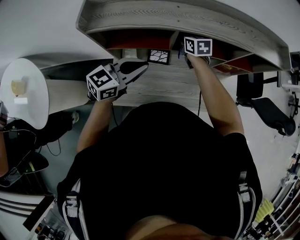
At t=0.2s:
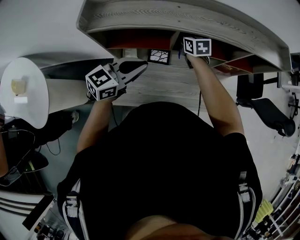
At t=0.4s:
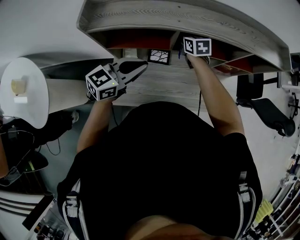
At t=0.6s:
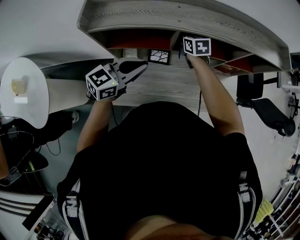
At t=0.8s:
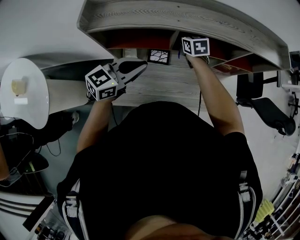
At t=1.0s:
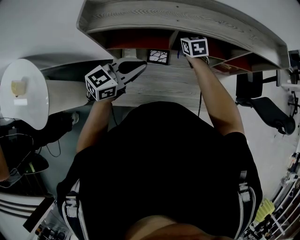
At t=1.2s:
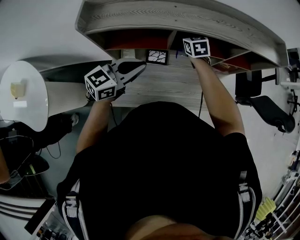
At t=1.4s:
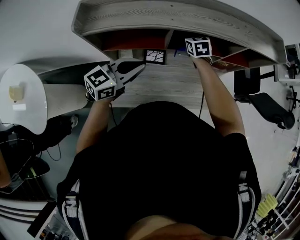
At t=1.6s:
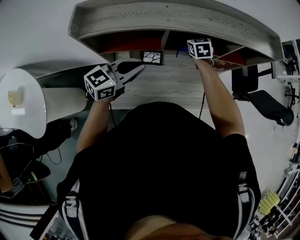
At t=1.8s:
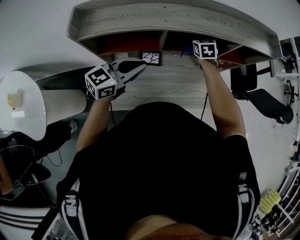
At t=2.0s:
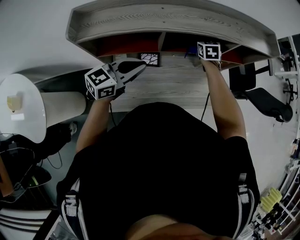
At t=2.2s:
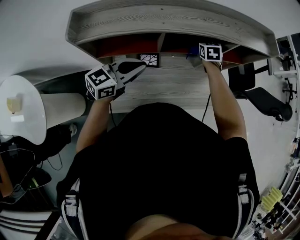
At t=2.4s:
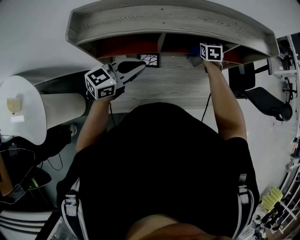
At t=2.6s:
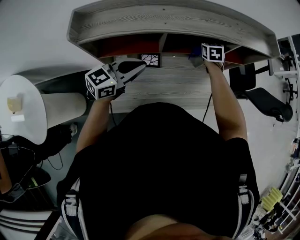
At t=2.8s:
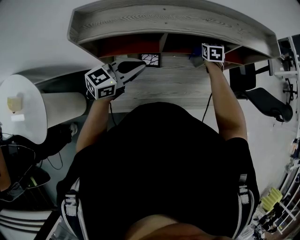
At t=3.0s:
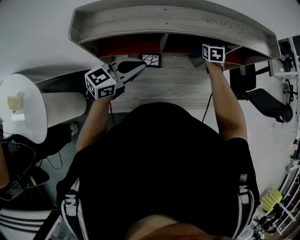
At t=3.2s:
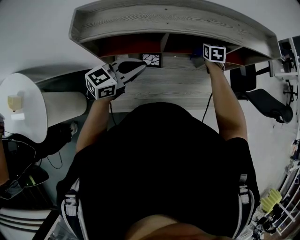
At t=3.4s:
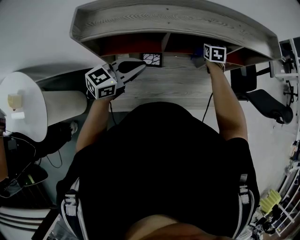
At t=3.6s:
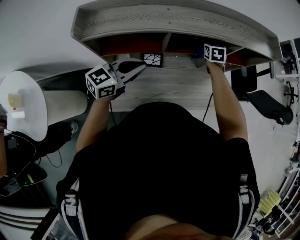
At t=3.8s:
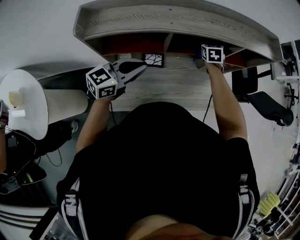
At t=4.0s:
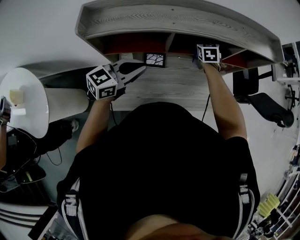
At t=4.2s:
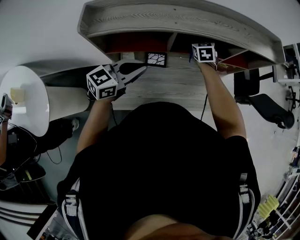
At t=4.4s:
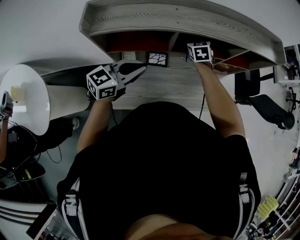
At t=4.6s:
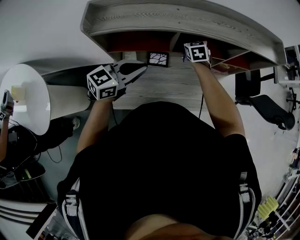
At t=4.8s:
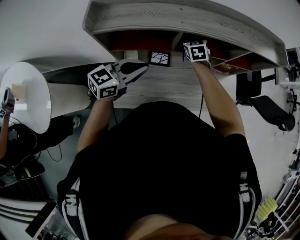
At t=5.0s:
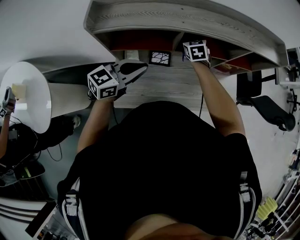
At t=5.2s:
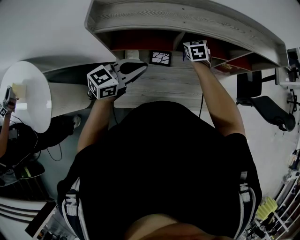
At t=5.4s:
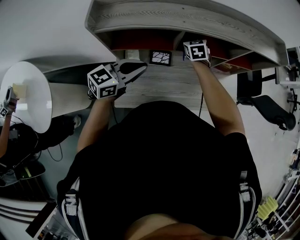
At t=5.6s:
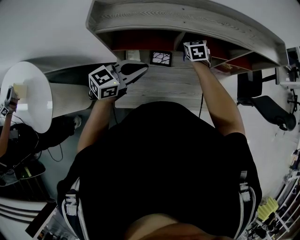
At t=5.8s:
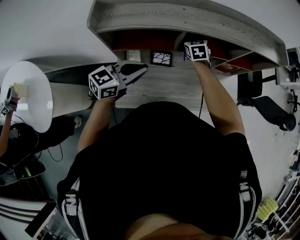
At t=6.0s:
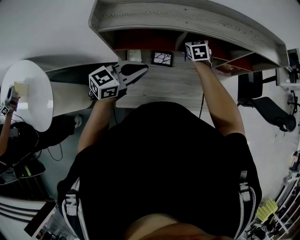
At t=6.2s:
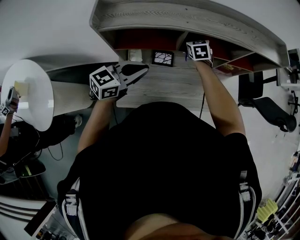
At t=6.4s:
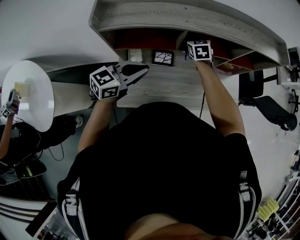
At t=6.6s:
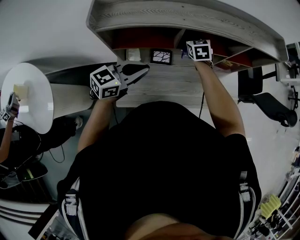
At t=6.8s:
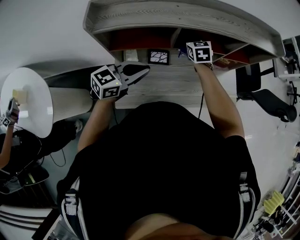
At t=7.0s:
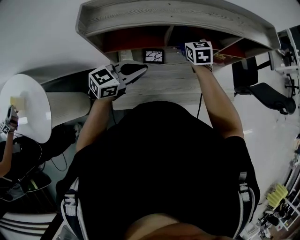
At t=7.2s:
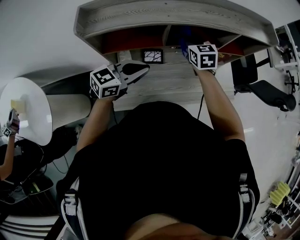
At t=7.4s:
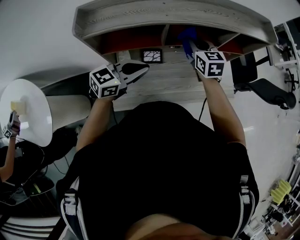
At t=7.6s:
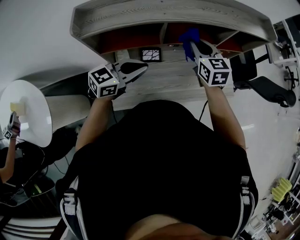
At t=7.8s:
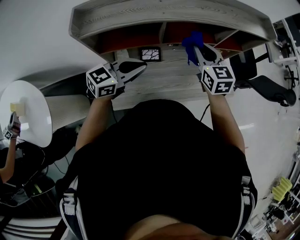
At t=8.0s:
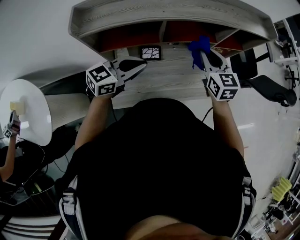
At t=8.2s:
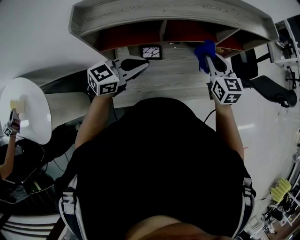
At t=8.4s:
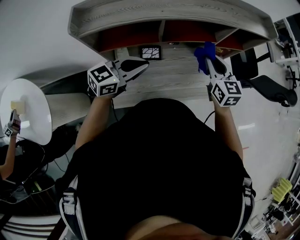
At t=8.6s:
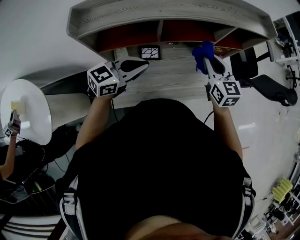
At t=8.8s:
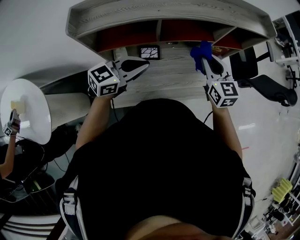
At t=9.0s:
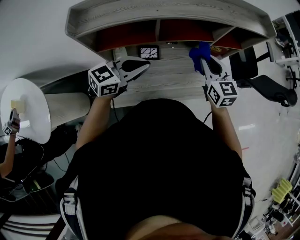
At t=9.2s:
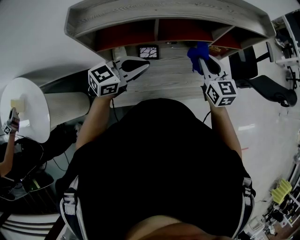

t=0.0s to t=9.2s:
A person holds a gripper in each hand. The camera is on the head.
t=0.0s to t=1.6s: The right gripper goes roughly 10 cm to the right, and changes its angle by about 20 degrees.
t=1.6s to t=3.0s: The right gripper is displaced to the right by some 10 cm.
t=3.0s to t=4.6s: The right gripper is displaced to the left and backward by approximately 15 cm.
t=4.6s to t=6.2s: The grippers move only a little.
t=6.2s to t=7.6s: The right gripper moves upward, backward and to the right, approximately 20 cm, and changes its angle by approximately 20 degrees.
t=7.6s to t=9.2s: The right gripper travels to the right by approximately 10 cm.

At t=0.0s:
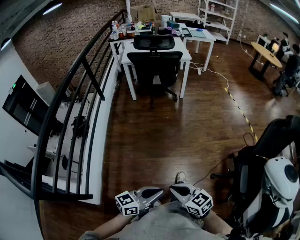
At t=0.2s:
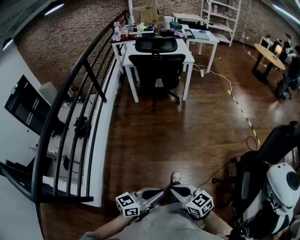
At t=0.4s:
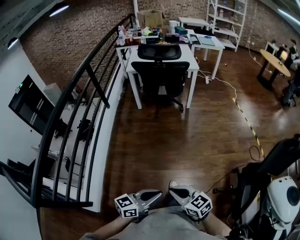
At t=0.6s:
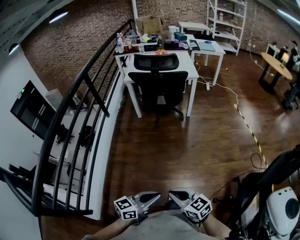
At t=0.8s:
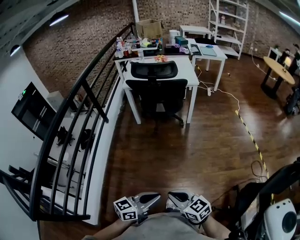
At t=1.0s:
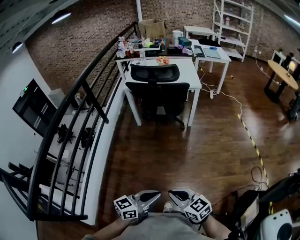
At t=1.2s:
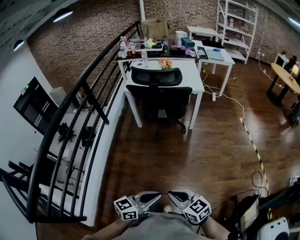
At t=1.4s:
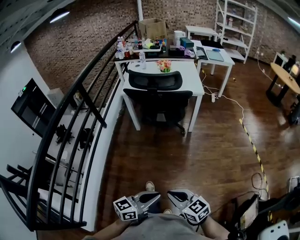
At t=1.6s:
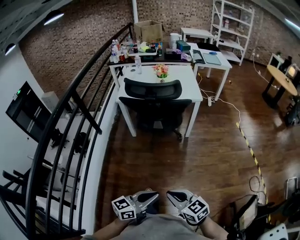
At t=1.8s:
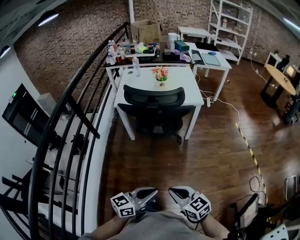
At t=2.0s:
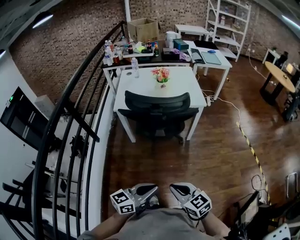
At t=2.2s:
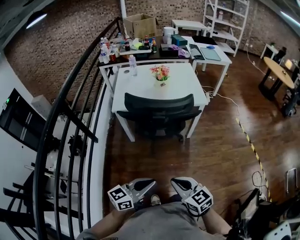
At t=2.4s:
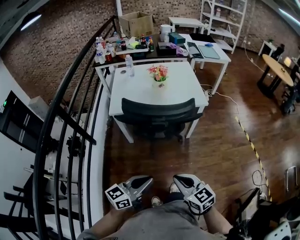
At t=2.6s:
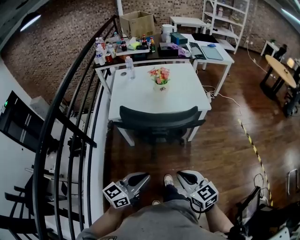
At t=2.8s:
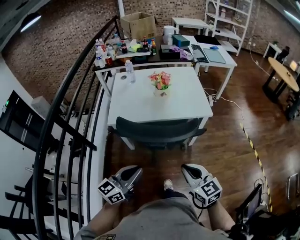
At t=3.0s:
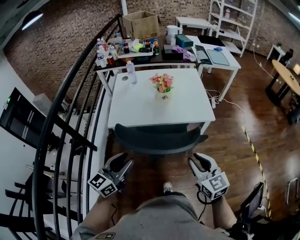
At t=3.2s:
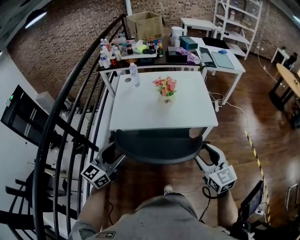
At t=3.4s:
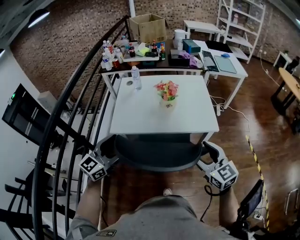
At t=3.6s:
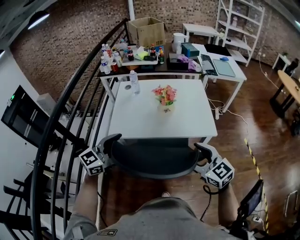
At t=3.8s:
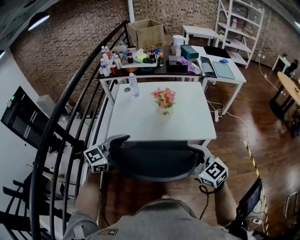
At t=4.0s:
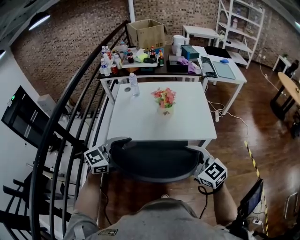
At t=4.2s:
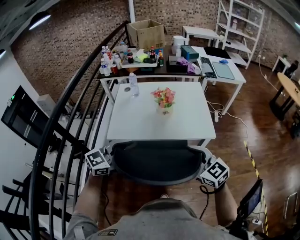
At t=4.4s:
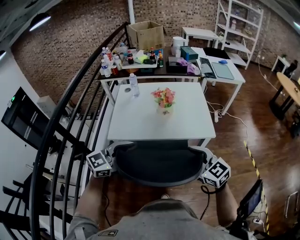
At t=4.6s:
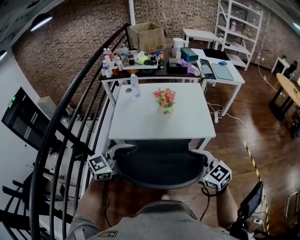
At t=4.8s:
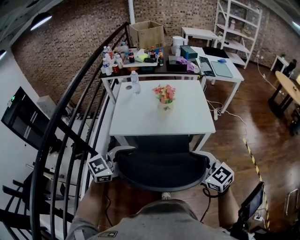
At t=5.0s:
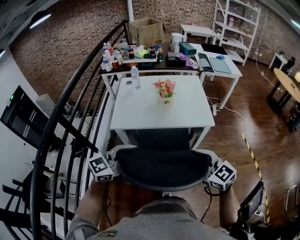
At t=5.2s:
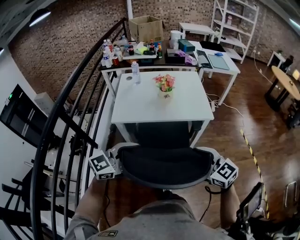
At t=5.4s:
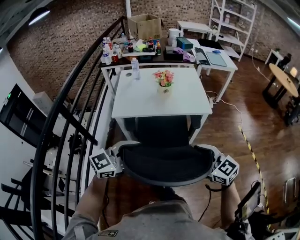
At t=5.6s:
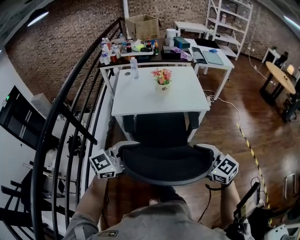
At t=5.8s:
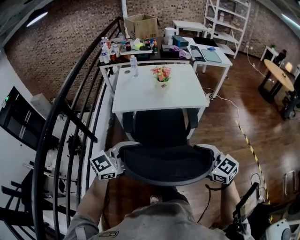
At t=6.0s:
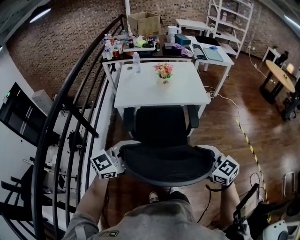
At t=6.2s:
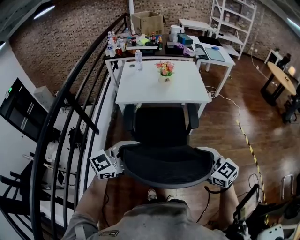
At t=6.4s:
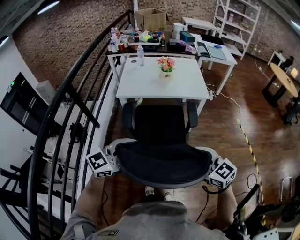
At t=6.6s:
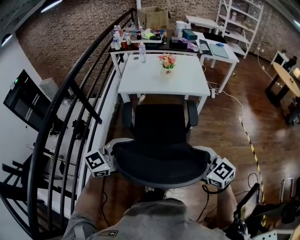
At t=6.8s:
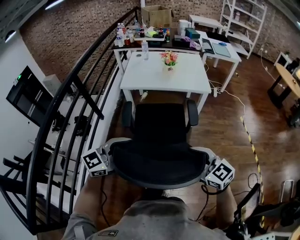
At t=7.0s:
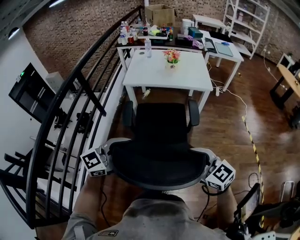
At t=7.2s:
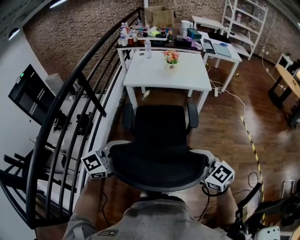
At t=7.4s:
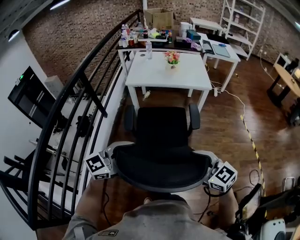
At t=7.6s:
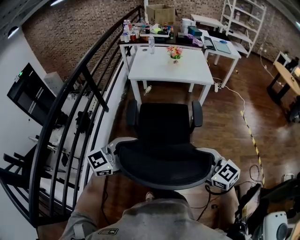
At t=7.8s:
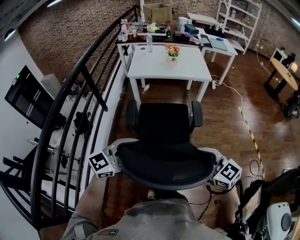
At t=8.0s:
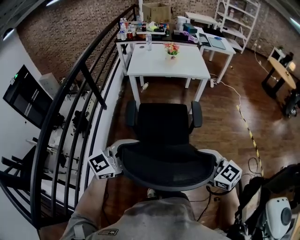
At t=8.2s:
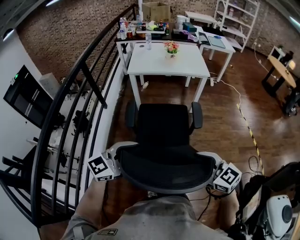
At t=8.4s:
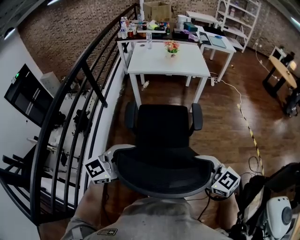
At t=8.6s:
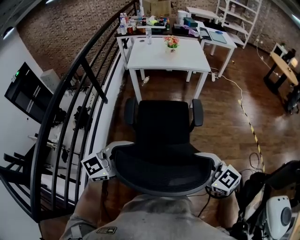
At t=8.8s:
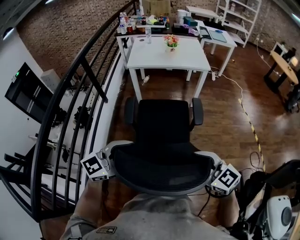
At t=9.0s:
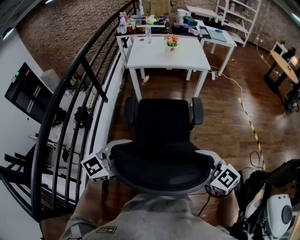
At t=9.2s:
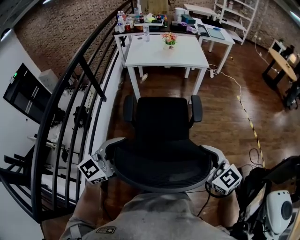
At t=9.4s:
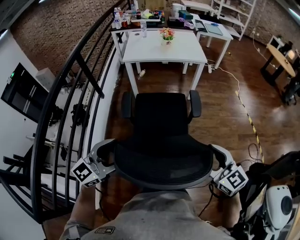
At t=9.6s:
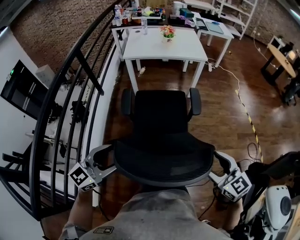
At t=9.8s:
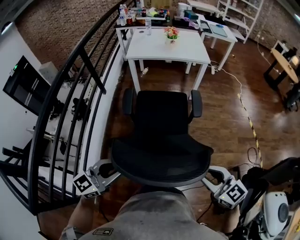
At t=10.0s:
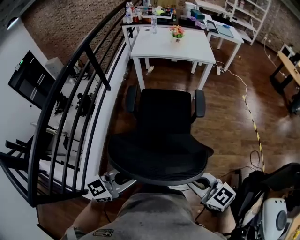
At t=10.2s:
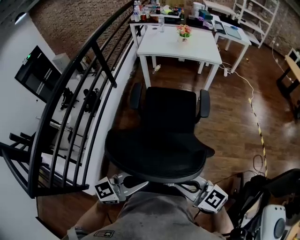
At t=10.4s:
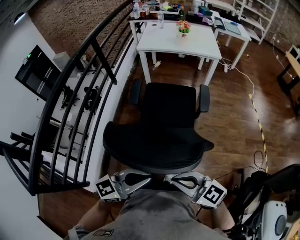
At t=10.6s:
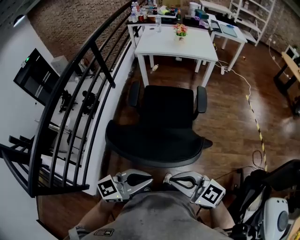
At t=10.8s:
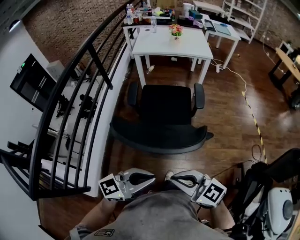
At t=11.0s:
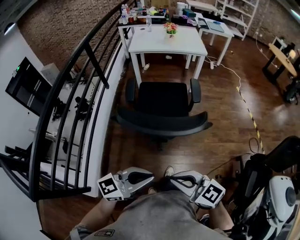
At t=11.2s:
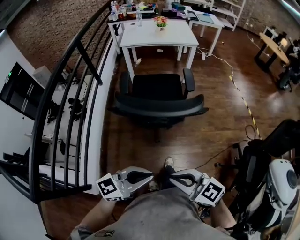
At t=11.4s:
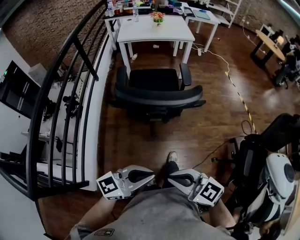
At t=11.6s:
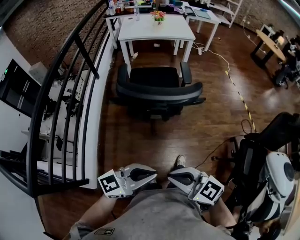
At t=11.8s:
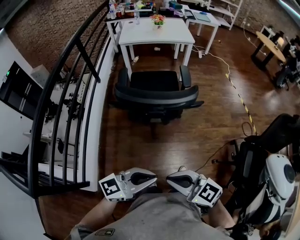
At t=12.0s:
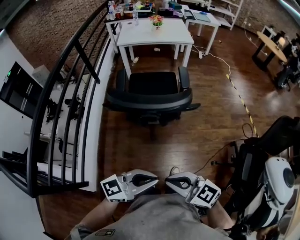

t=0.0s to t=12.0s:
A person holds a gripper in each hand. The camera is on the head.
t=0.0s to t=1.6s: The two grippers travel together, forward, roughly 50 cm.
t=1.6s to t=3.0s: The pair of grippers is taken forward, about 40 cm. The right gripper turns by approximately 30 degrees, while the left gripper rotates some 30 degrees.
t=3.0s to t=4.4s: Both grippers move forward, roughly 10 cm. The right gripper rotates about 20 degrees, and opens; the left gripper swivels approximately 30 degrees, and opens its fingers.
t=4.4s to t=6.0s: The grippers both shift backward by some 25 cm.
t=6.0s to t=7.6s: The two grippers go about 25 cm backward.
t=7.6s to t=9.0s: The grippers both shift backward by some 10 cm.
t=9.0s to t=10.4s: The right gripper changes place by some 15 cm, changes its angle by approximately 20 degrees, and closes up; the left gripper changes place by roughly 20 cm, and closes its fingers.
t=10.4s to t=12.0s: The left gripper moves some 15 cm. The right gripper moves roughly 20 cm.

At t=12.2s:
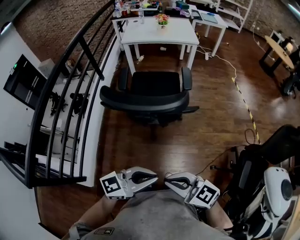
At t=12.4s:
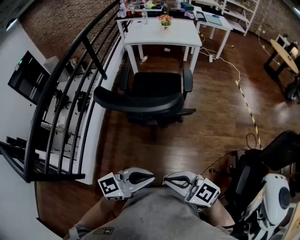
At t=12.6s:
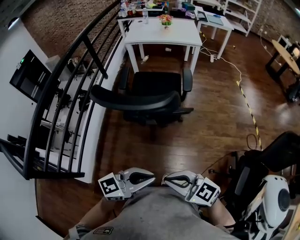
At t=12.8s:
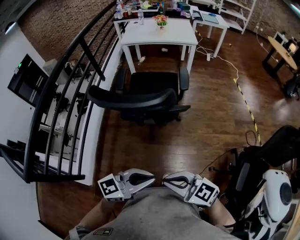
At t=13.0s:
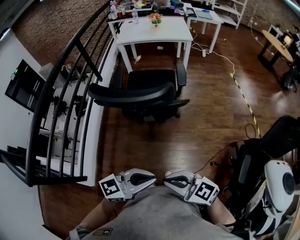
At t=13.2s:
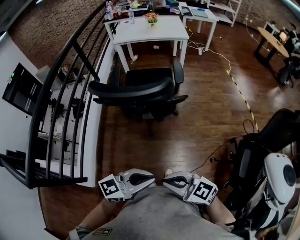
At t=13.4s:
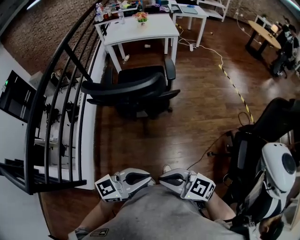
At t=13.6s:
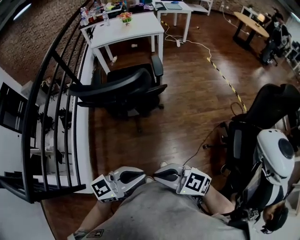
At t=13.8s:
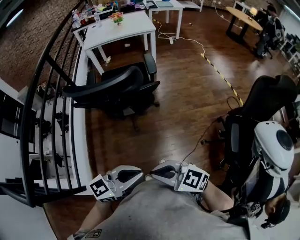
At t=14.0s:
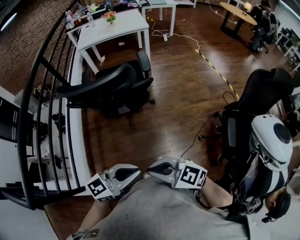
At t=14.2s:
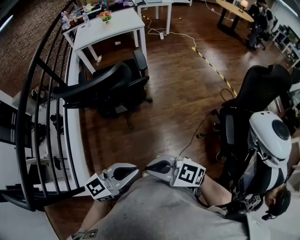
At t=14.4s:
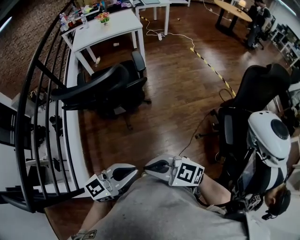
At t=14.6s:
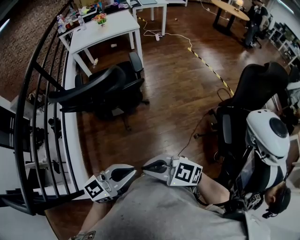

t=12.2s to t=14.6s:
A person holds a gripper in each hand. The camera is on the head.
t=12.2s to t=13.4s: The left gripper moves some 5 cm; the right gripper shifts by about 5 cm.
t=13.4s to t=14.6s: The grippers make only small movements.
